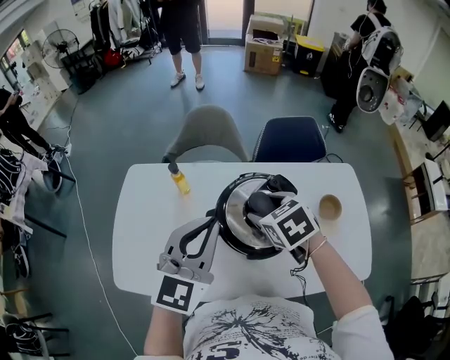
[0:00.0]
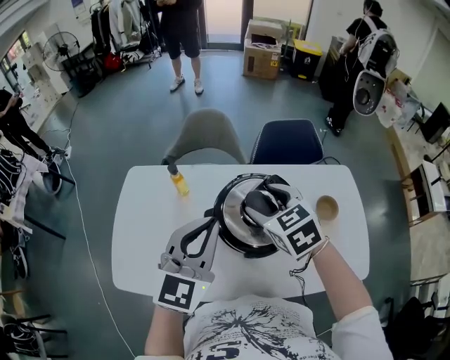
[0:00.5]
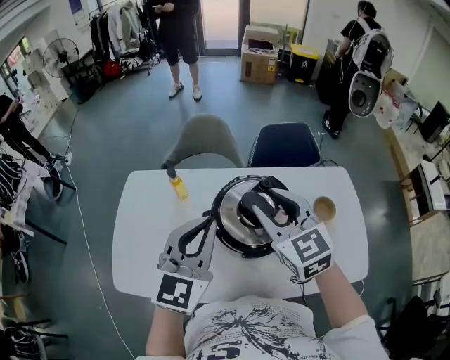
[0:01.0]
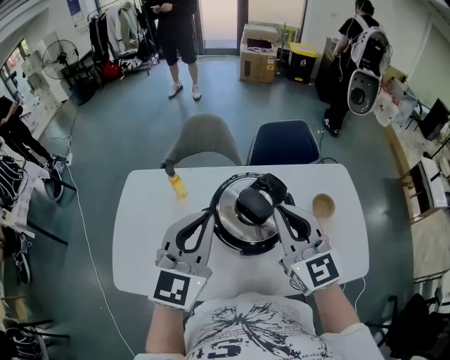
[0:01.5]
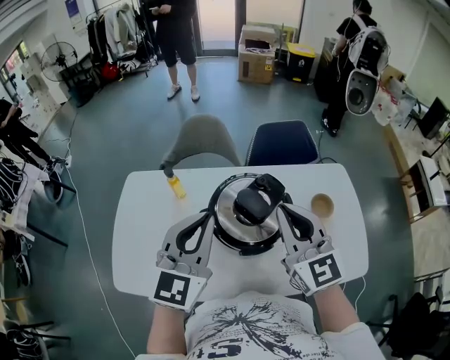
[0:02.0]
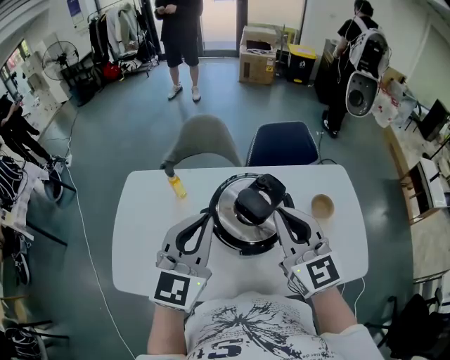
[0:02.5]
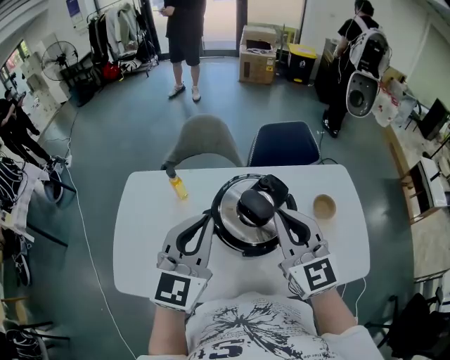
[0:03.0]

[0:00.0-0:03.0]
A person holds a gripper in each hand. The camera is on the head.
0:00.0 to 0:01.5: The right gripper goes roughly 15 cm upward and backward, tilts its fingers approximately 50 degrees upward, and closes its fingers.
0:01.5 to 0:03.0: The grippers make only small movements.

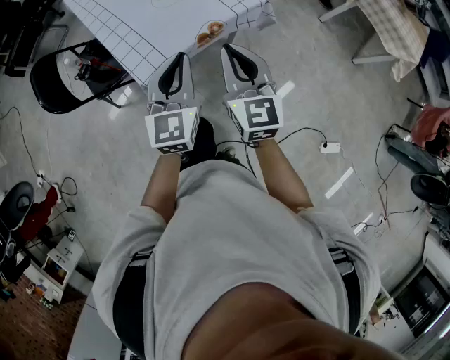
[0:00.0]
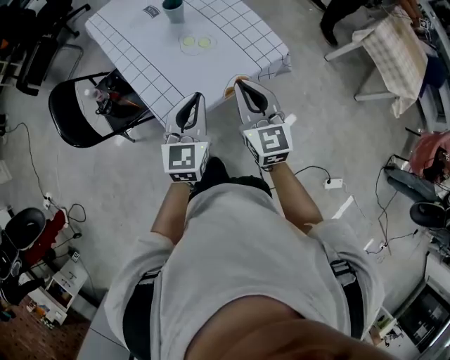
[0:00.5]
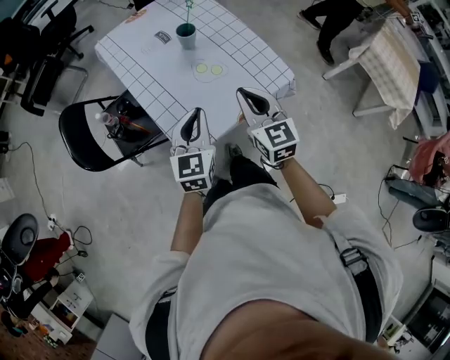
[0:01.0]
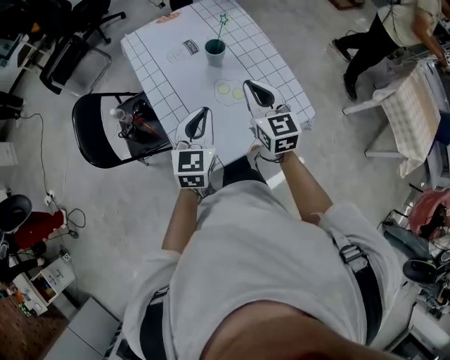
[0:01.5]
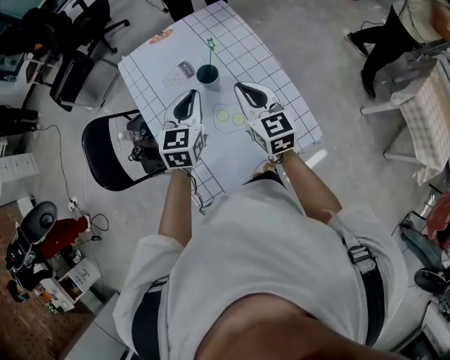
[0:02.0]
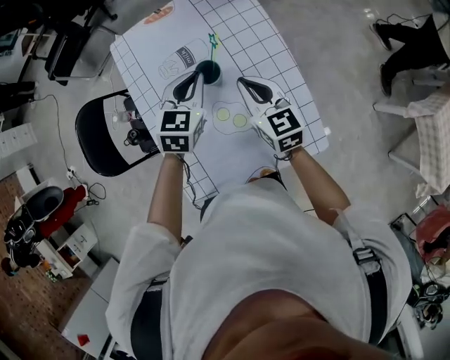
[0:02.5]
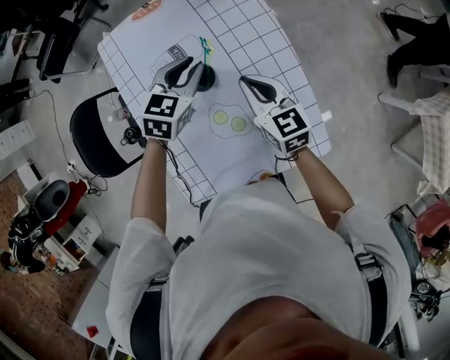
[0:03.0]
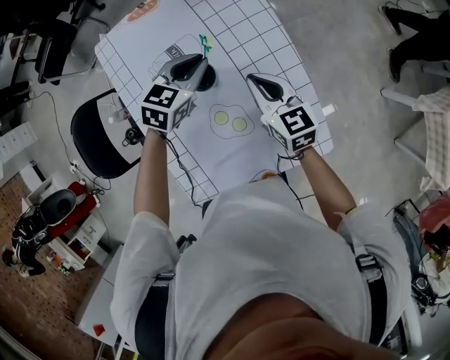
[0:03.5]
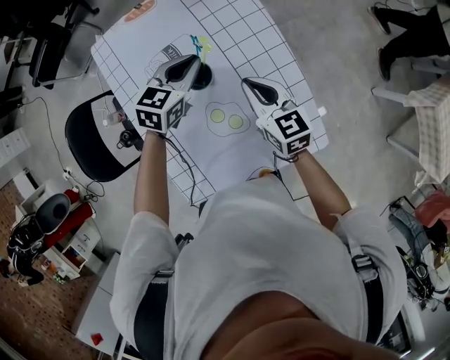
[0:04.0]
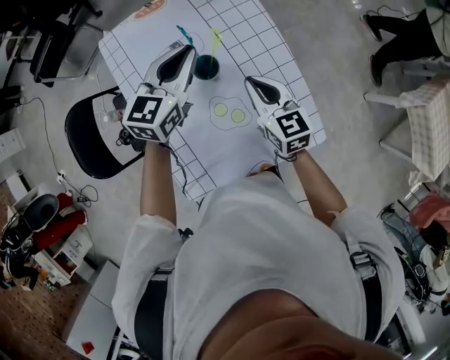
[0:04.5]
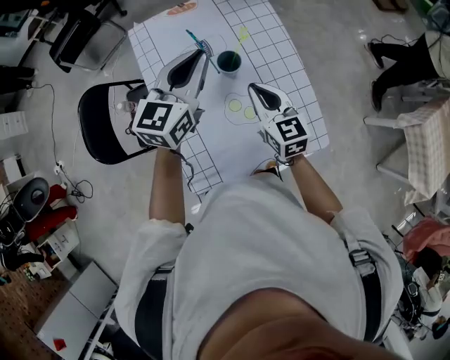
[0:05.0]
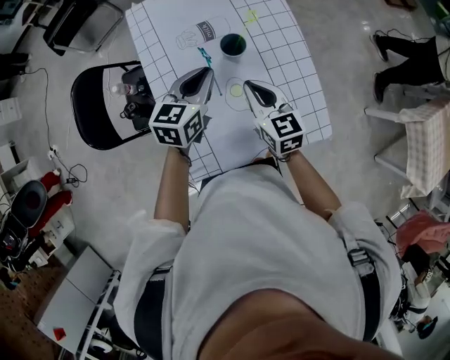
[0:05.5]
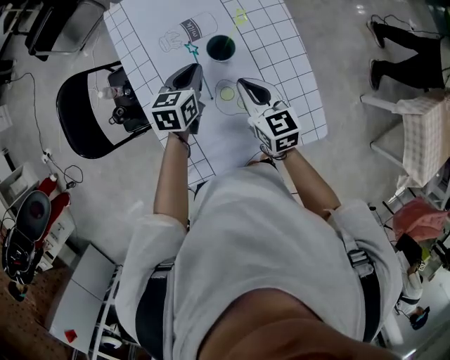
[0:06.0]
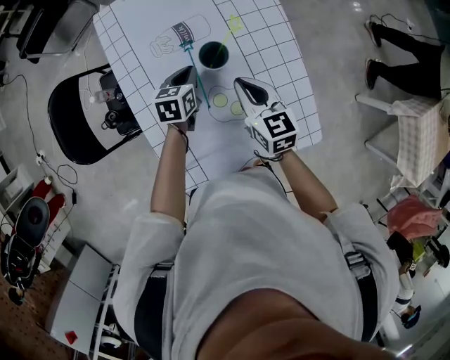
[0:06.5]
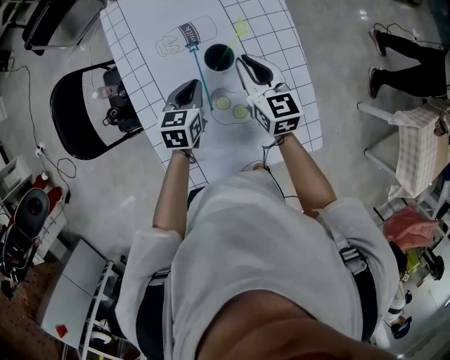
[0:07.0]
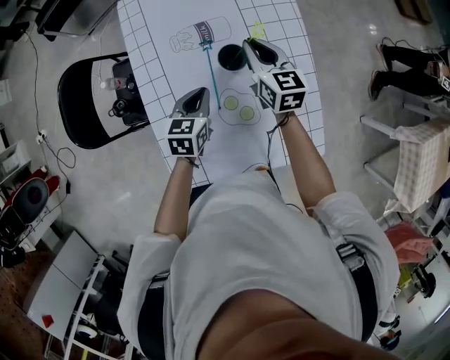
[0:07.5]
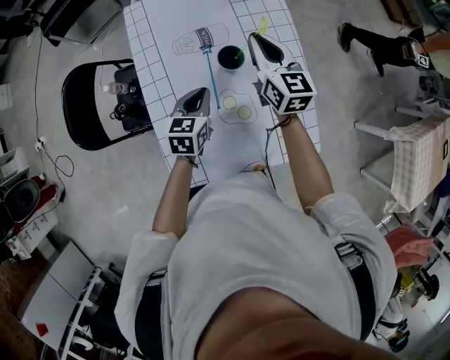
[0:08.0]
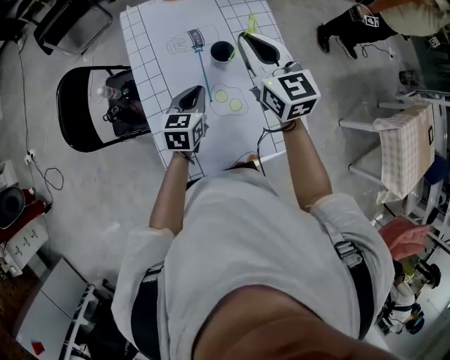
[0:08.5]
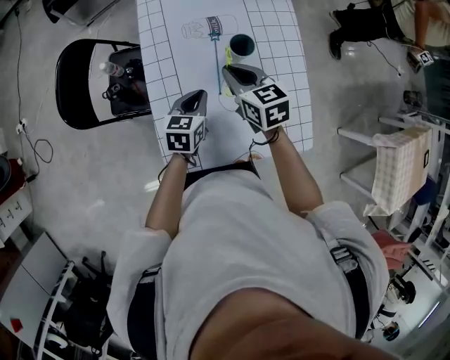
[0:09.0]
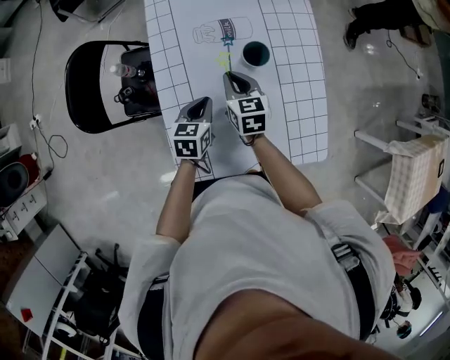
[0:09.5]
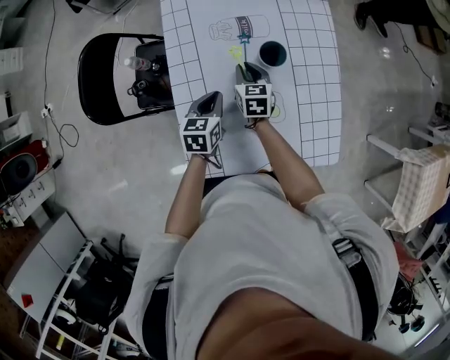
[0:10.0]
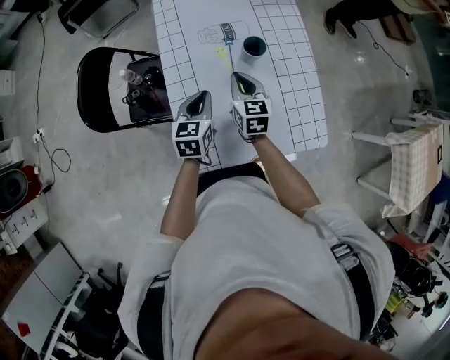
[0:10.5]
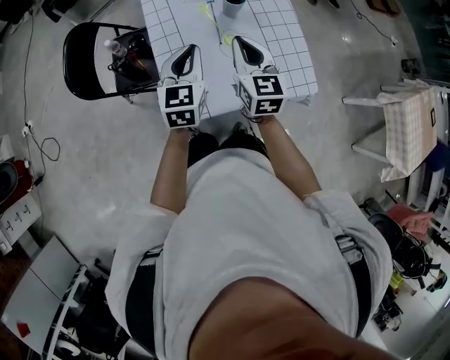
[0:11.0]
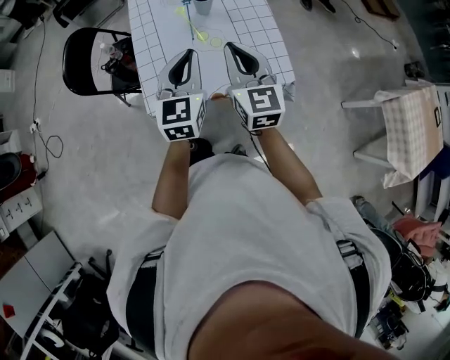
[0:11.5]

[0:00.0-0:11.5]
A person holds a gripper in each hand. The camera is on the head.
0:00.0 to 0:02.0: Both grippers are carried forward, approximately 40 cm. The right gripper turns by about 20 degrees.
0:02.0 to 0:04.0: The right gripper goes approximately 15 cm downward and forward. Meanwhile the left gripper goes approximately 20 cm forward and downward, and changes its angle by about 20 degrees.
0:04.0 to 0:06.0: Both grippers travel together to the left and backward, some 10 cm. The left gripper goes upward and returns, some 20 cm each way, and rotates roughly 30 degrees.
0:06.0 to 0:07.5: The right gripper is displaced forward by roughly 15 cm. Meanwhile the left gripper shifts by approximately 5 cm.
0:07.5 to 0:09.5: The right gripper heads to the left and backward, covering approximately 15 cm, and goes upward and returns, roughly 20 cm each way. Meanwhile the left gripper travels backward and to the left by some 10 cm, and goes upward and returns, some 5 cm each way.
0:09.5 to 0:11.5: The right gripper shifts about 30 cm upward, backward and to the right, and changes its angle by some 30 degrees. Meanwhile the left gripper goes approximately 25 cm upward, and tips its fingers upward by about 30 degrees.

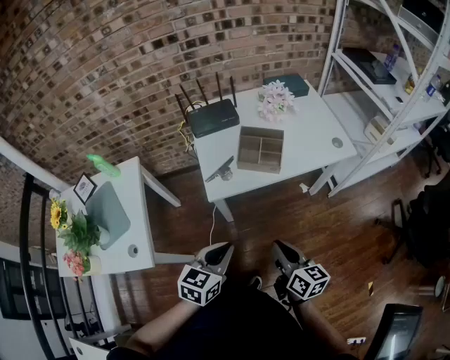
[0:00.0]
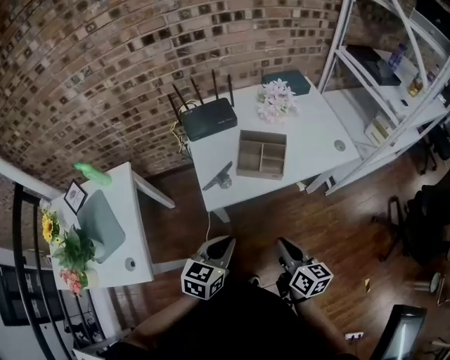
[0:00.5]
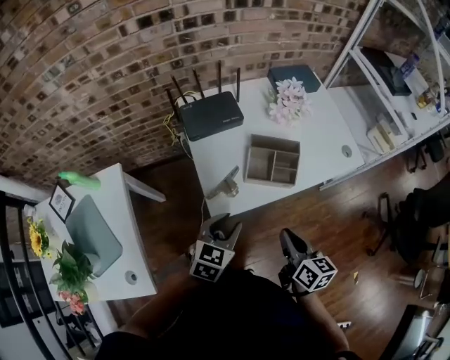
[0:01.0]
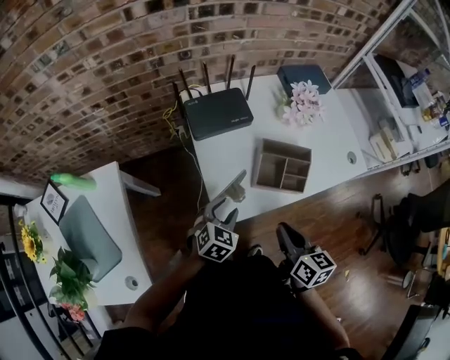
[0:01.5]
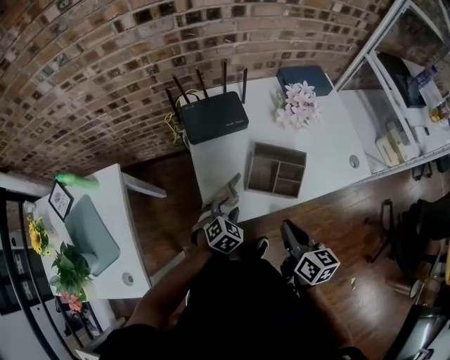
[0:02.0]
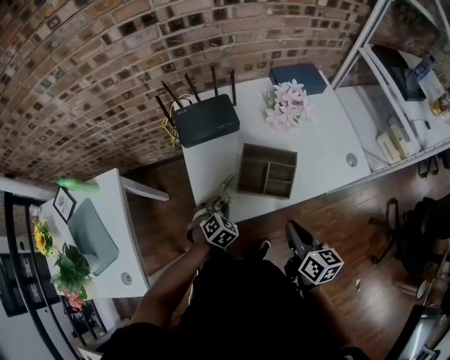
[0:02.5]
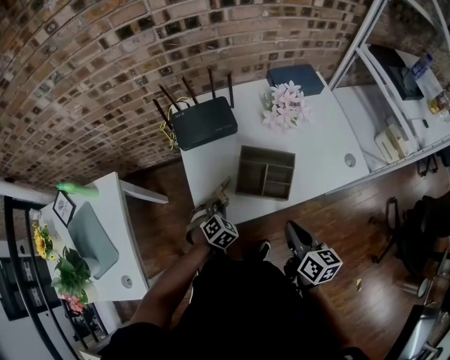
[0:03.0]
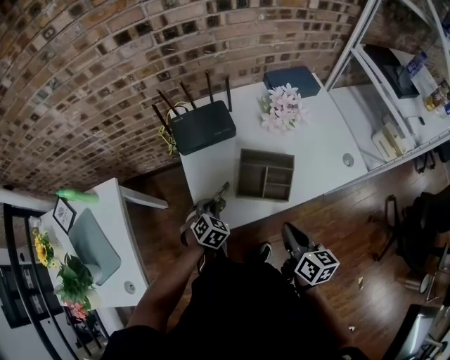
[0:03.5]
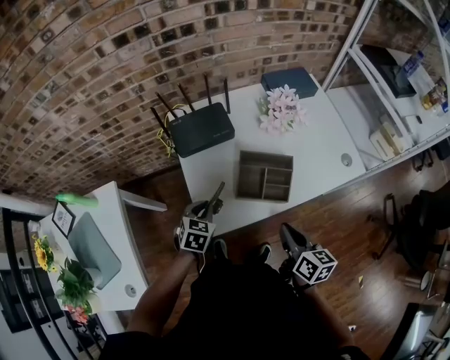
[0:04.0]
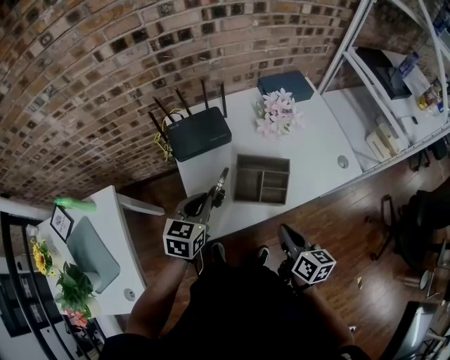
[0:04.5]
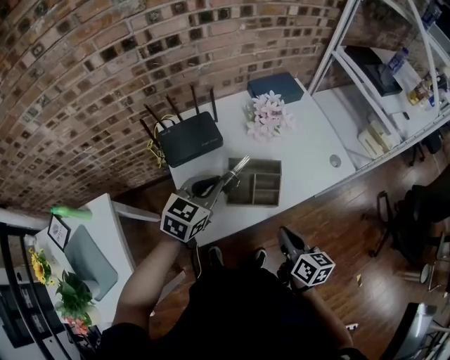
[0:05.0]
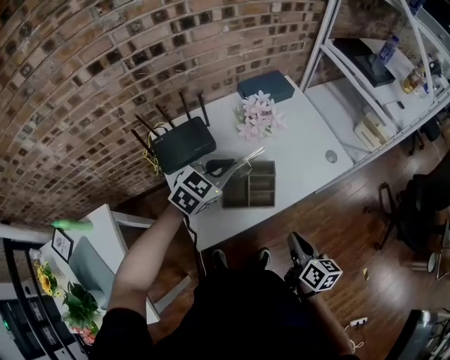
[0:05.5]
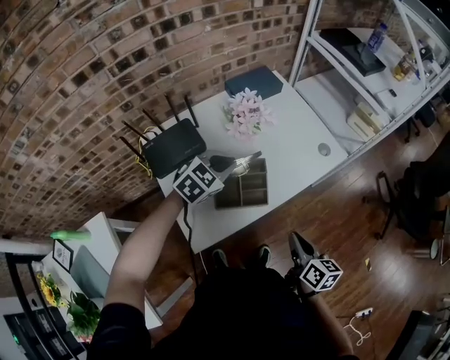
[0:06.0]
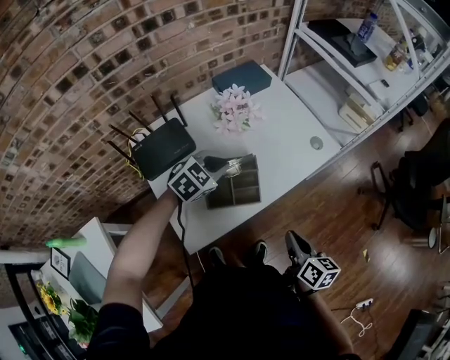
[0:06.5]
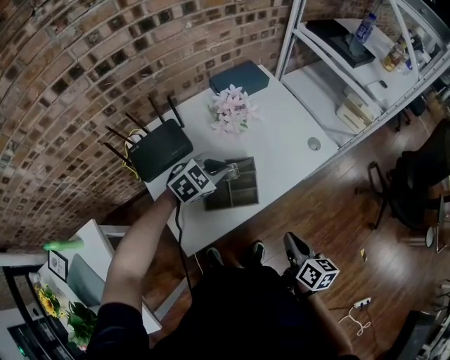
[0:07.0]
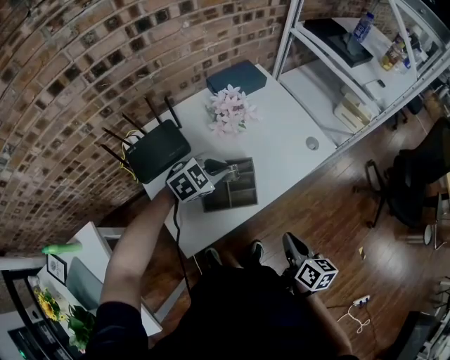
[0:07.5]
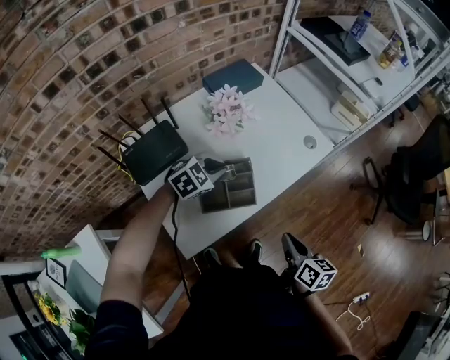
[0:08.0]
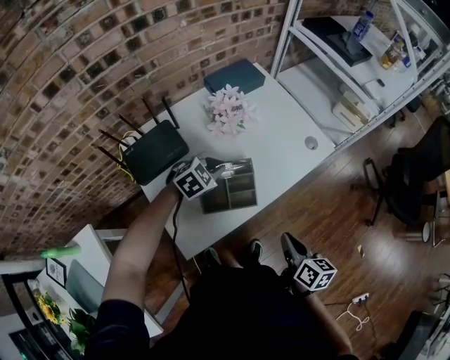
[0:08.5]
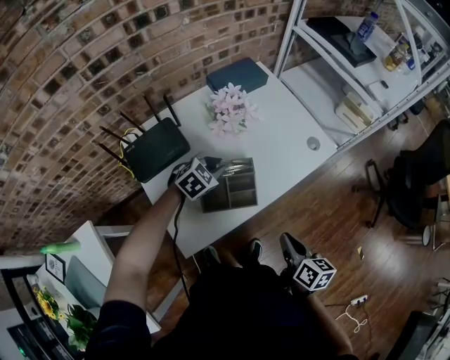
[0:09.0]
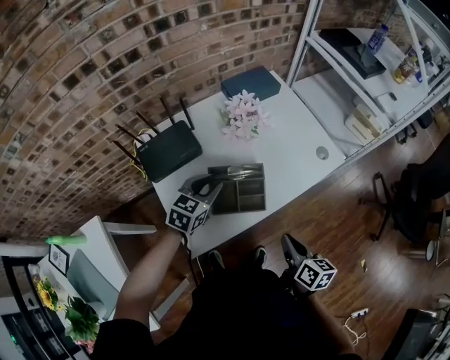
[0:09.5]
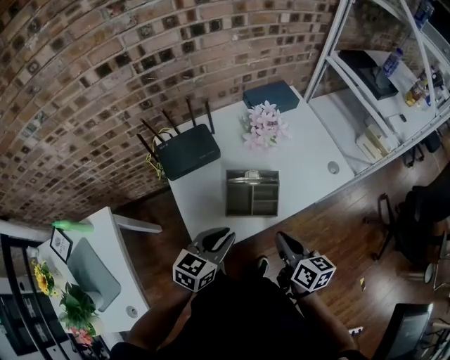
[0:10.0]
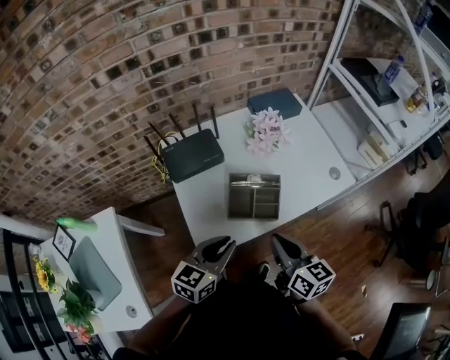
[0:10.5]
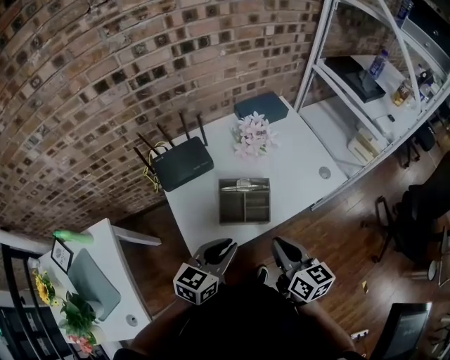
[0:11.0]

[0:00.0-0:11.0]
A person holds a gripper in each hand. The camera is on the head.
0:00.0 to 0:02.0: The right gripper heads forward, covering some 25 cm. The left gripper heads forward and downward, covering roughly 35 cm, changes its angle by roughly 40 degrees, and opens.
0:02.0 to 0:03.5: The left gripper closes up.
0:03.5 to 0:05.5: The right gripper moves some 5 cm, while the left gripper heads upward, covering approximately 20 cm, and rotates some 40 degrees.
0:05.5 to 0:07.5: The left gripper moves downward, about 10 cm, and changes its angle by roughly 20 degrees.
0:07.5 to 0:09.0: The left gripper shifts about 5 cm downward.
0:09.0 to 0:11.0: The right gripper is displaced upward and to the left by roughly 15 cm, and changes its angle by about 30 degrees; the left gripper shifts roughly 25 cm backward and upward, and angles its fingers upward, by roughly 30 degrees.

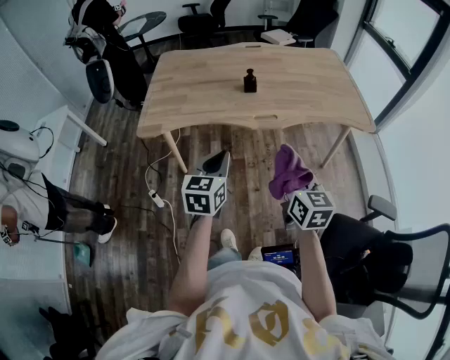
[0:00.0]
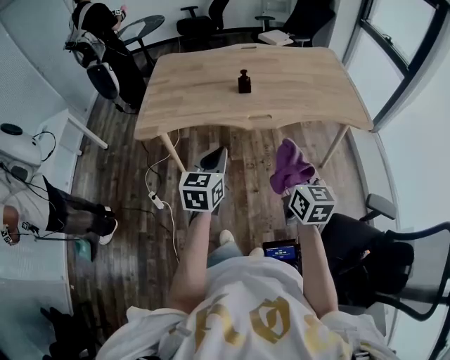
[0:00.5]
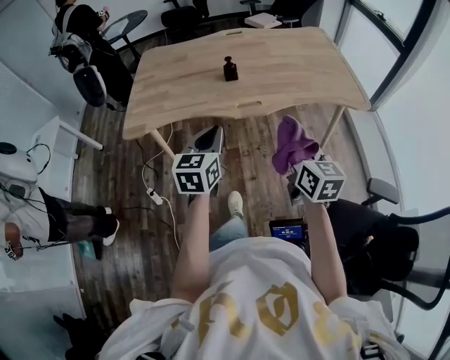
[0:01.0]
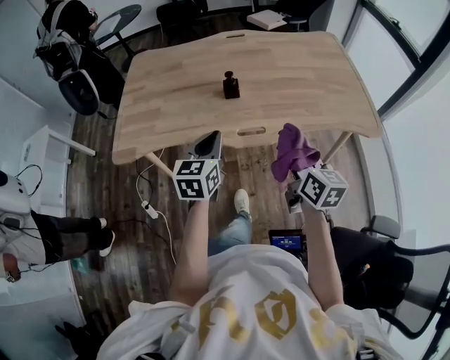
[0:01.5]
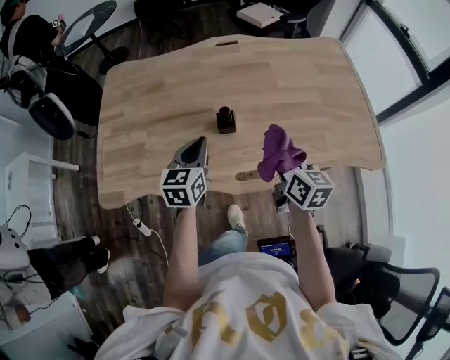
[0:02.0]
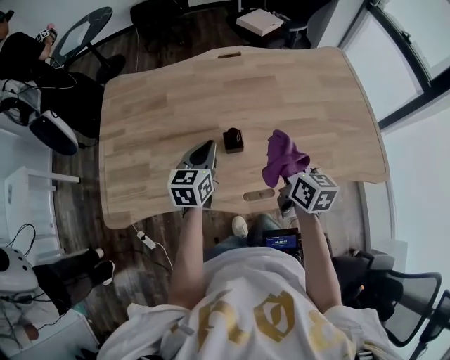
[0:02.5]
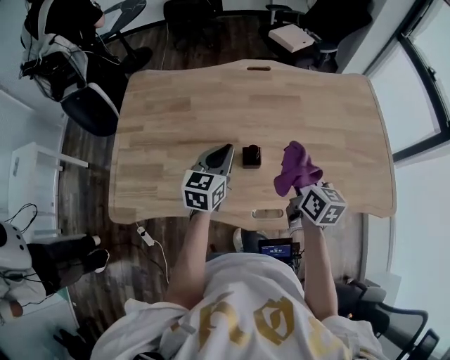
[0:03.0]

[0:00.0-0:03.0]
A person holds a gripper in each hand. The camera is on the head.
0:00.0 to 0:01.5: The grippers both shift forward by about 25 cm.
0:01.5 to 0:03.0: The two grippers go some 35 cm forward.
